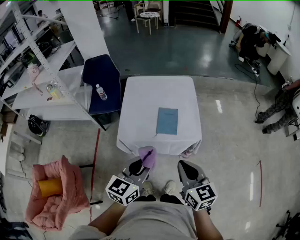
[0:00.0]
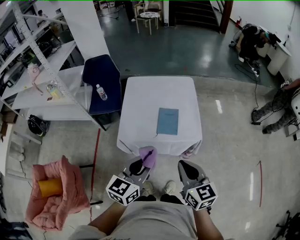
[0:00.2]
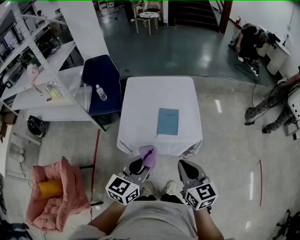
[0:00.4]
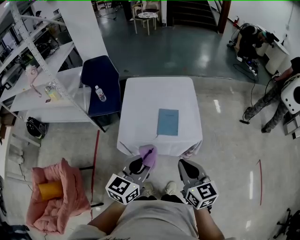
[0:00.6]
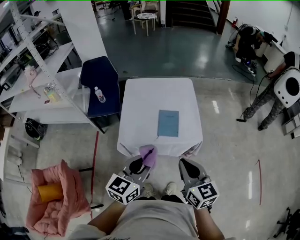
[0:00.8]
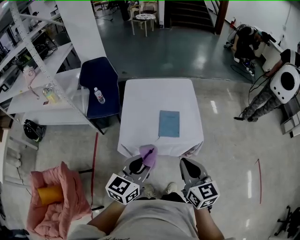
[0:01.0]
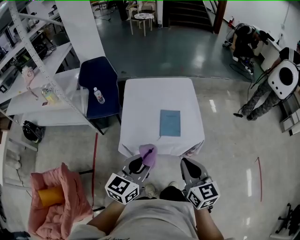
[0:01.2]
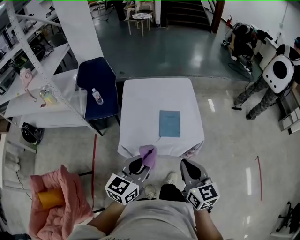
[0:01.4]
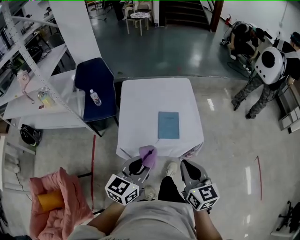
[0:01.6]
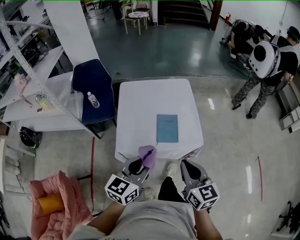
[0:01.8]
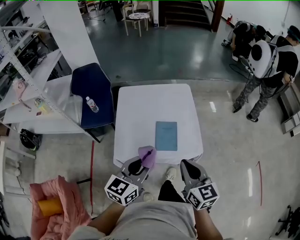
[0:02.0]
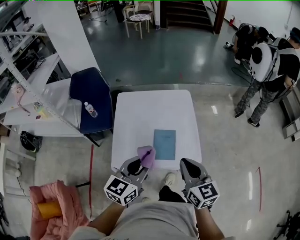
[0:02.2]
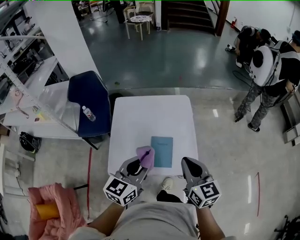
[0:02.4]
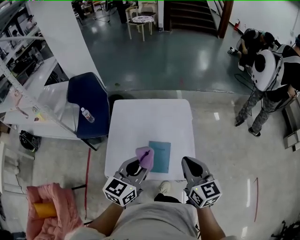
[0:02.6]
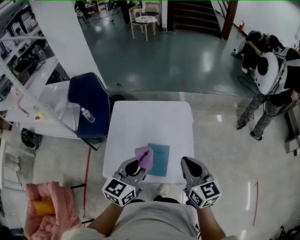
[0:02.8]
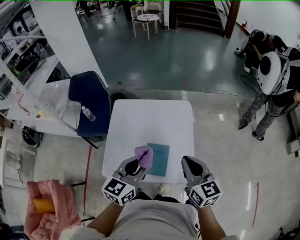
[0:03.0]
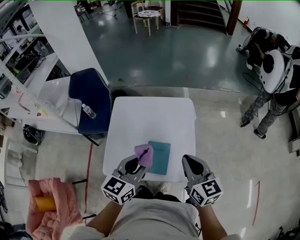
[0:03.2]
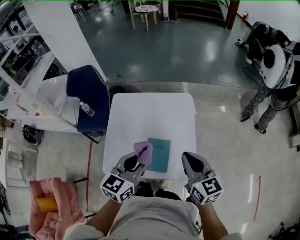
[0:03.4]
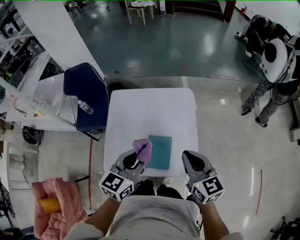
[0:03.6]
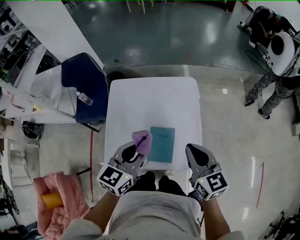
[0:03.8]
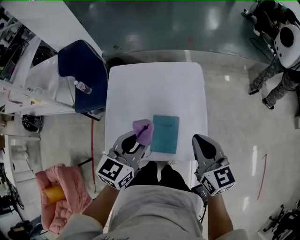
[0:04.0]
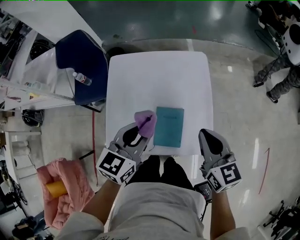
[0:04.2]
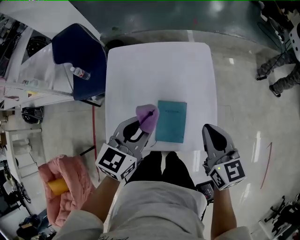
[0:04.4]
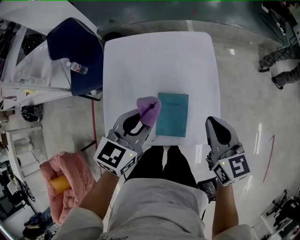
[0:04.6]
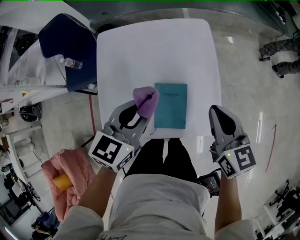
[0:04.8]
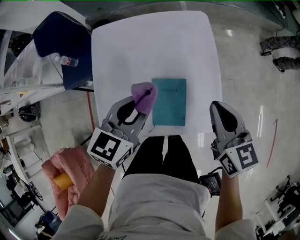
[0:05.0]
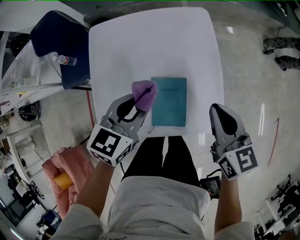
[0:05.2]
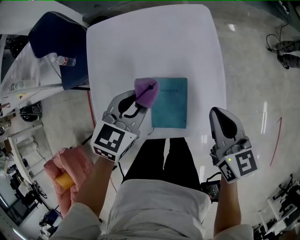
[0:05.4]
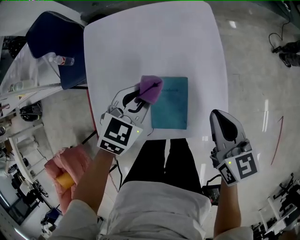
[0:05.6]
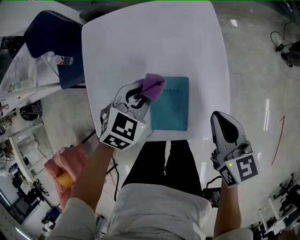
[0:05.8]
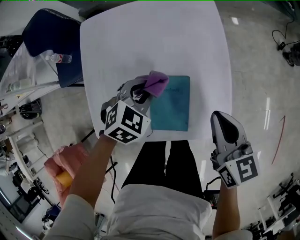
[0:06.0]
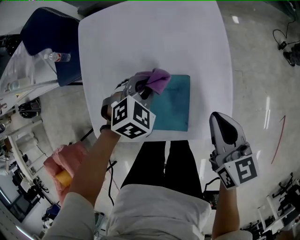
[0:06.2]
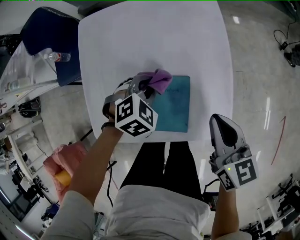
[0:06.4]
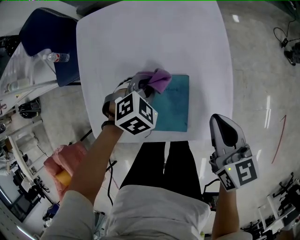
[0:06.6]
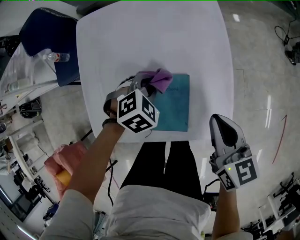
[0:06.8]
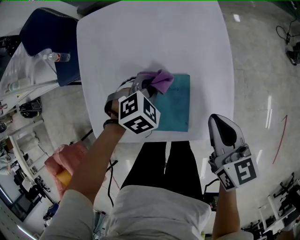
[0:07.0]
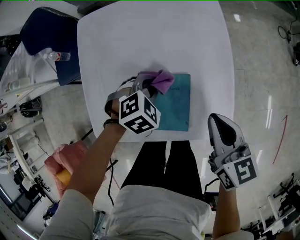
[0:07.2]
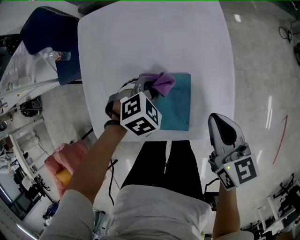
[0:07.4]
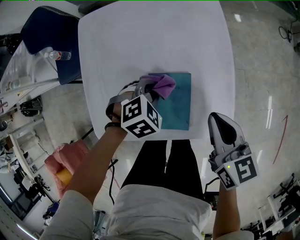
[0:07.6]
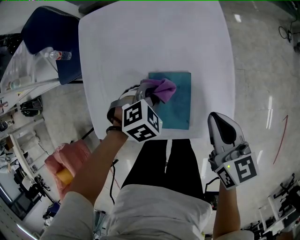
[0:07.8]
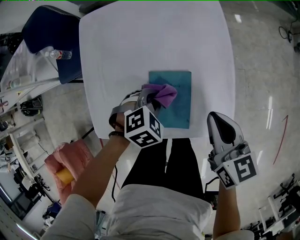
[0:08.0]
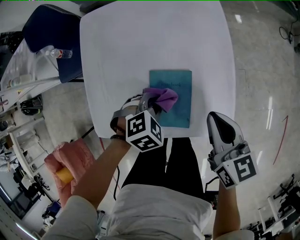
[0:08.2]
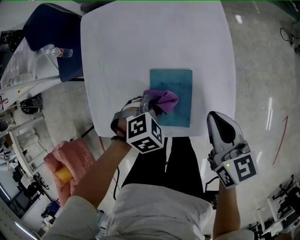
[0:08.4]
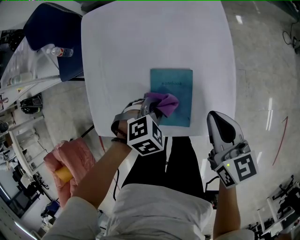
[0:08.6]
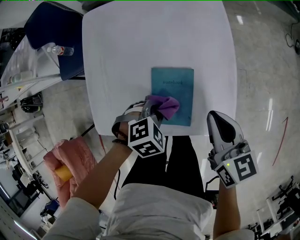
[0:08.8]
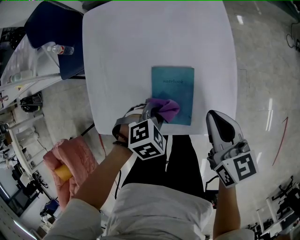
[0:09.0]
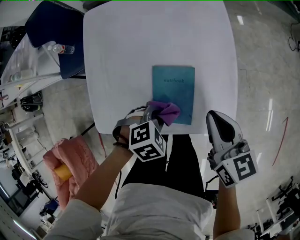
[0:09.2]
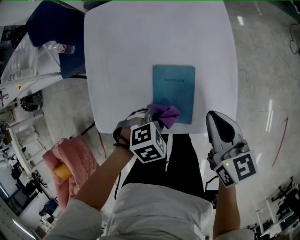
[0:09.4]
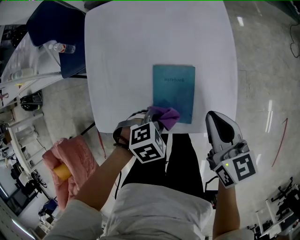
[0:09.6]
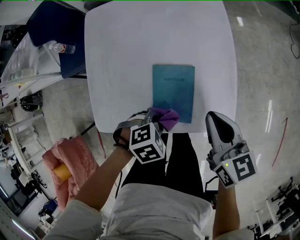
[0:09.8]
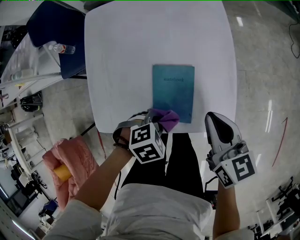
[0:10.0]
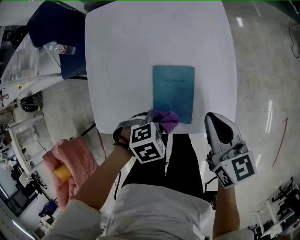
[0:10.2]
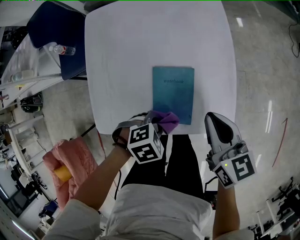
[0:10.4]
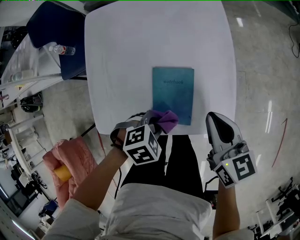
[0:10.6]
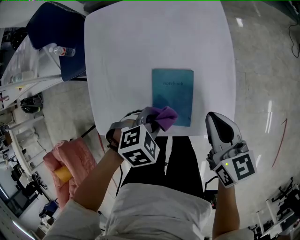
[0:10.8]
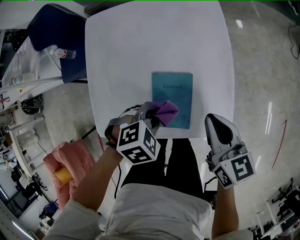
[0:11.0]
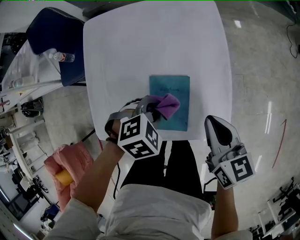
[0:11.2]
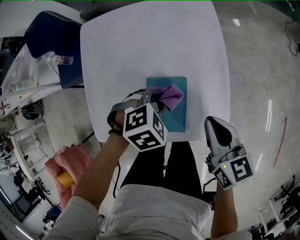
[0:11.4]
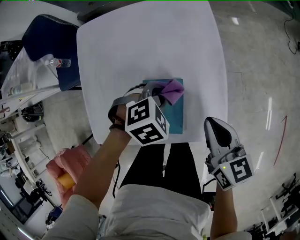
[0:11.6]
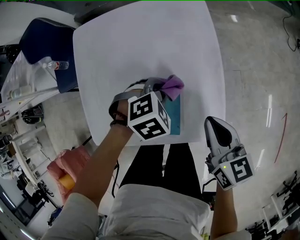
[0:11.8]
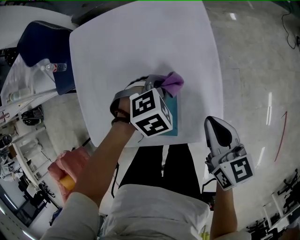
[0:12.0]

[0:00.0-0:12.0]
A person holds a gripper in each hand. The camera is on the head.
0:00.0 to 0:01.6: The left gripper moves some 5 cm.
0:01.6 to 0:03.0: The two grippers go some 25 cm forward.
0:03.0 to 0:04.4: The left gripper heads downward and forward, covering roughly 10 cm. Meanwhile the right gripper goes roughly 5 cm downward.
0:04.4 to 0:06.0: The left gripper moves downward, roughly 20 cm, and tilts its fingers approximately 30 degrees downward; the right gripper heads downward, covering approximately 10 cm.
0:06.0 to 0:07.6: The left gripper moves downward, about 5 cm.
0:07.6 to 0:09.0: The left gripper is displaced backward by about 10 cm.
0:09.0 to 0:10.4: The left gripper changes place by some 5 cm.
0:10.4 to 0:12.0: The left gripper changes place by approximately 20 cm; the right gripper changes place by about 5 cm.

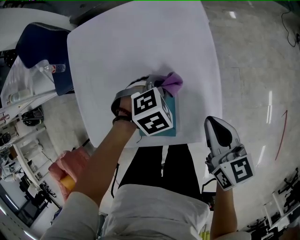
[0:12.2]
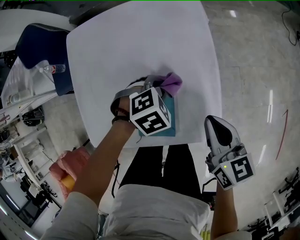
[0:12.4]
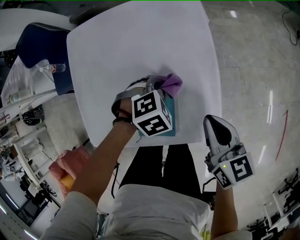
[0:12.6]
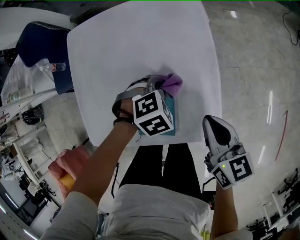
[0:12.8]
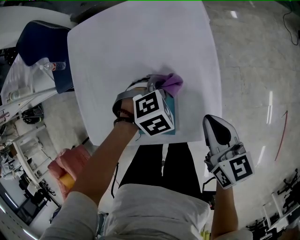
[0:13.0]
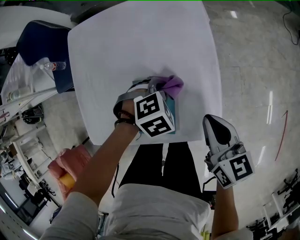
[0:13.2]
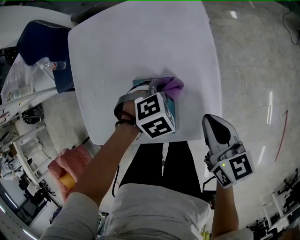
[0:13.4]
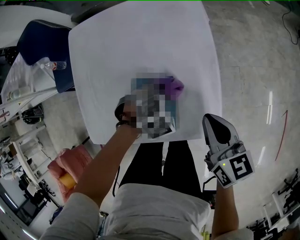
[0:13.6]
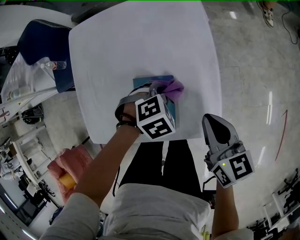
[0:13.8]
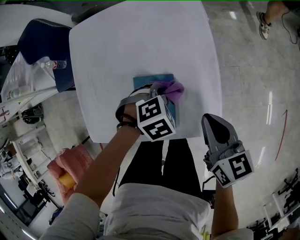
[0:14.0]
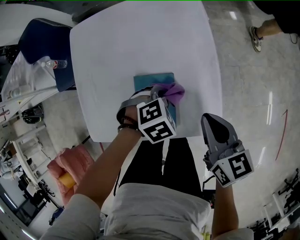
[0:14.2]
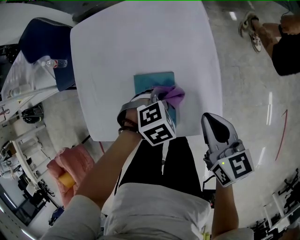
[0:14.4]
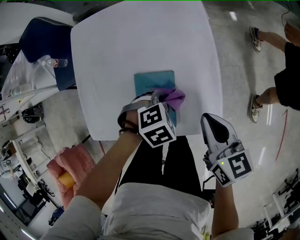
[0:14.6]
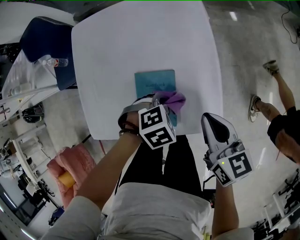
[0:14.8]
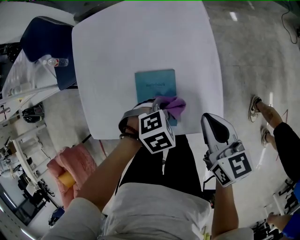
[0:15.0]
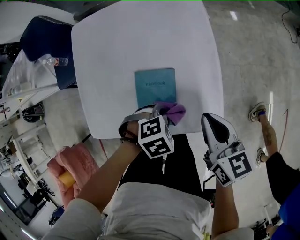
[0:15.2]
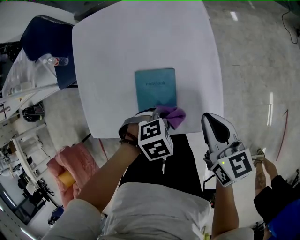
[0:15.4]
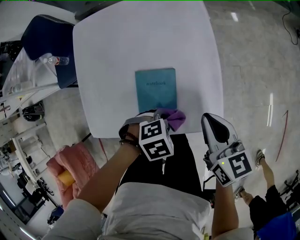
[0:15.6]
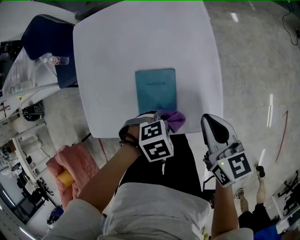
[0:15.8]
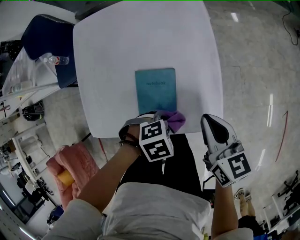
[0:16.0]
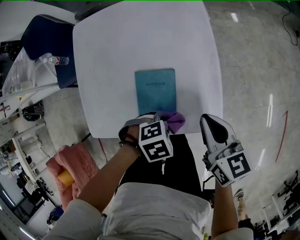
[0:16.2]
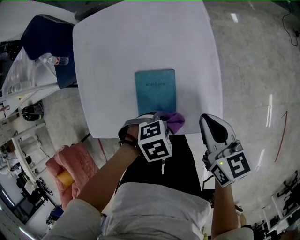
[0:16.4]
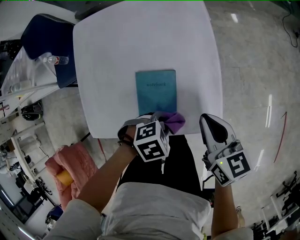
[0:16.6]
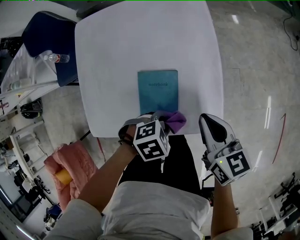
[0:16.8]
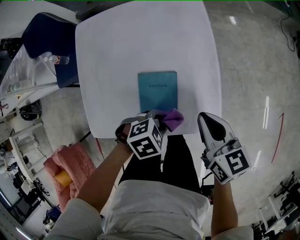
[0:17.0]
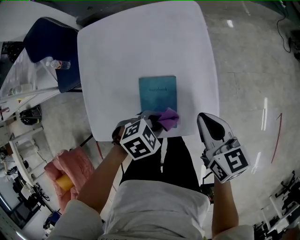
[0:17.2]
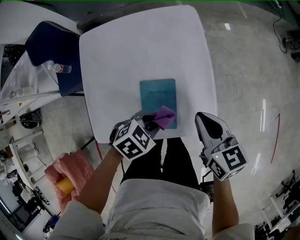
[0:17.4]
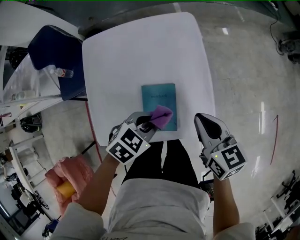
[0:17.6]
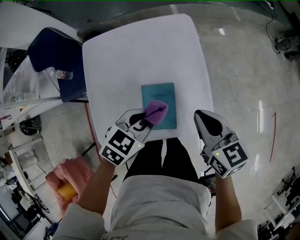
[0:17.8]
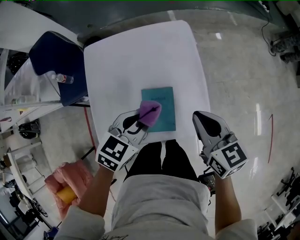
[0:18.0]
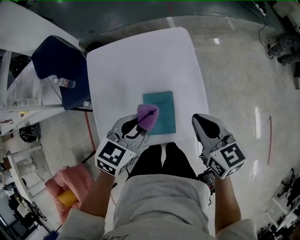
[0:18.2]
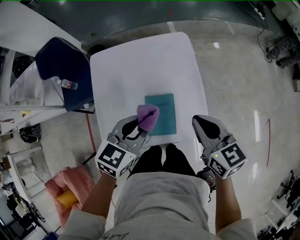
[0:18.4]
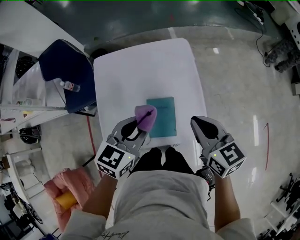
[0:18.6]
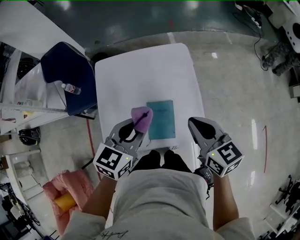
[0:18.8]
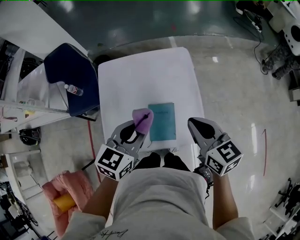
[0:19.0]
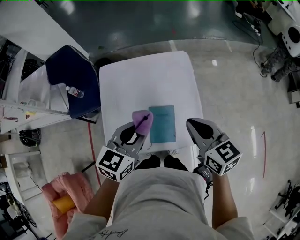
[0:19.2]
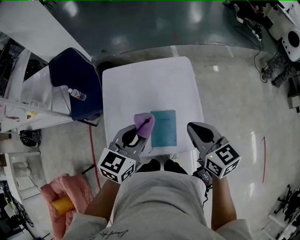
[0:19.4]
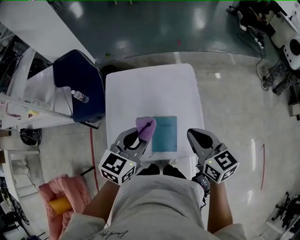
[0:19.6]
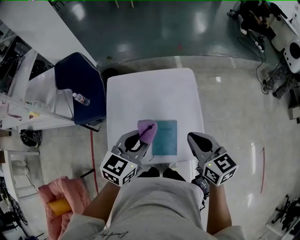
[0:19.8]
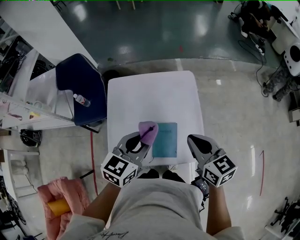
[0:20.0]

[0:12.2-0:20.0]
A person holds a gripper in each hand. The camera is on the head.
0:12.2 to 0:13.8: There are only small adjustments of the grippers.
0:13.8 to 0:15.4: The left gripper ends up roughly 10 cm from where it was.
0:15.4 to 0:16.8: The grippers move only a little.
0:16.8 to 0:18.4: The left gripper travels upward by about 25 cm, and points its fingers approximately 40 degrees further upward; the right gripper shifts roughly 15 cm upward.
0:18.4 to 0:20.0: The right gripper moves about 5 cm. The left gripper is displaced upward by approximately 5 cm.

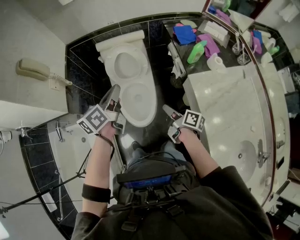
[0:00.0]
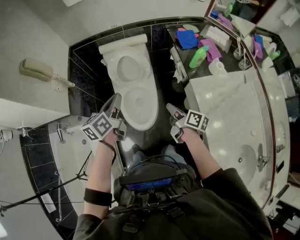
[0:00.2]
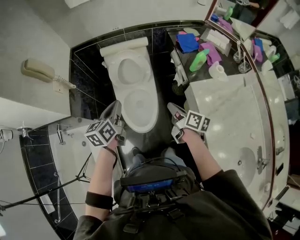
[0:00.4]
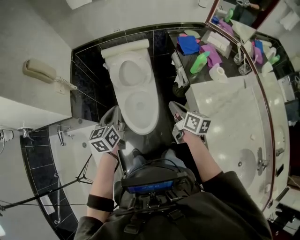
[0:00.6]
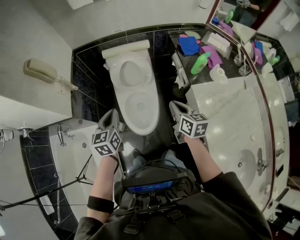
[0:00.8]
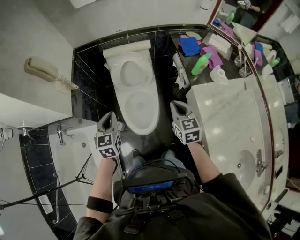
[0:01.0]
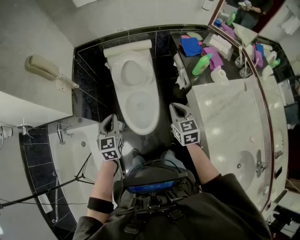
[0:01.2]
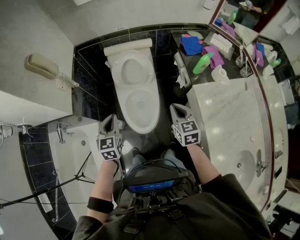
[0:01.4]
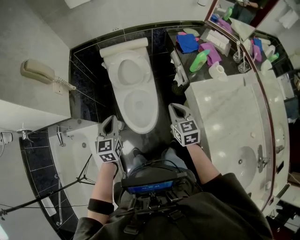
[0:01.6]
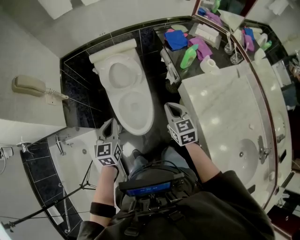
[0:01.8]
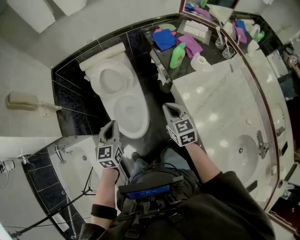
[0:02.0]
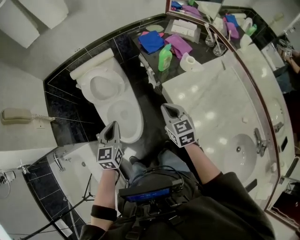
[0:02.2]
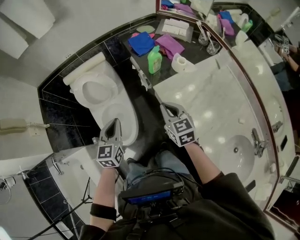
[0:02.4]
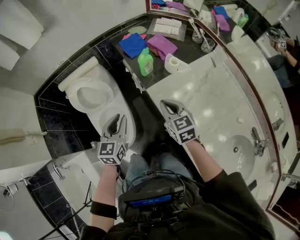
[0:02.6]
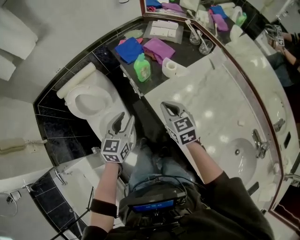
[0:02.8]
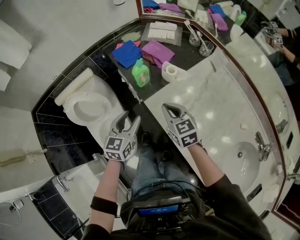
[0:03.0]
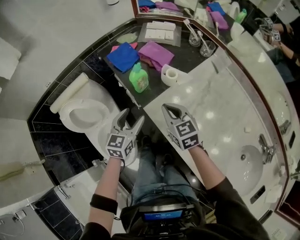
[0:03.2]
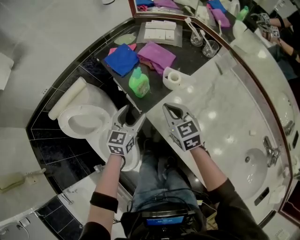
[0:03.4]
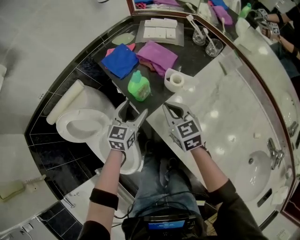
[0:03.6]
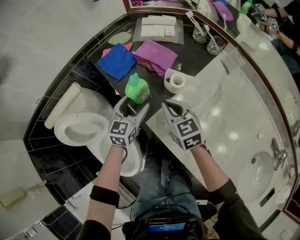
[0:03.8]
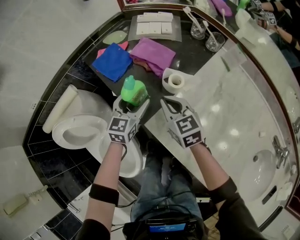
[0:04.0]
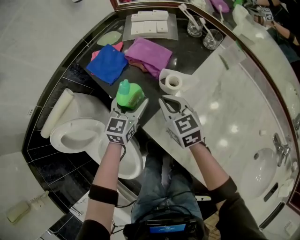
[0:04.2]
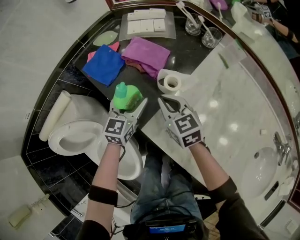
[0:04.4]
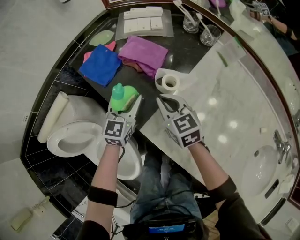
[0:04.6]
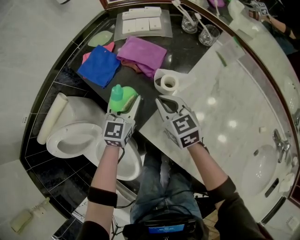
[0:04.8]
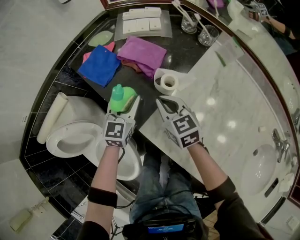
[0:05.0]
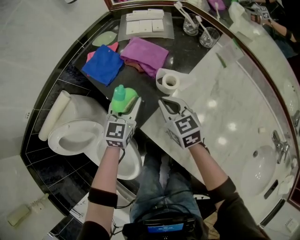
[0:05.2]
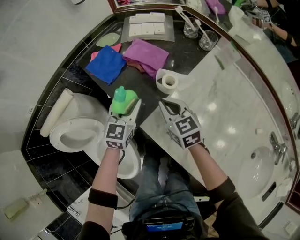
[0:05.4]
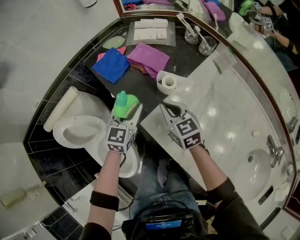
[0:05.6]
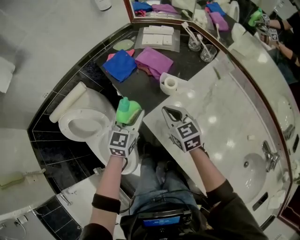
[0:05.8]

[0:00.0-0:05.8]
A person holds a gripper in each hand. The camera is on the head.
0:00.0 to 0:01.4: The right gripper goes roughly 5 cm upward, and twists approximately 60 degrees counterclockwise, seen from behind, while the left gripper travels downward, to the left and backward by about 15 cm, and rotates around the line of its fingers by about 40 degrees, clockwise from behind.
0:01.4 to 0:02.8: Both grippers move to the right, some 30 cm. The left gripper rotates approximately 40 degrees, and opens.
0:02.8 to 0:04.4: Both grippers travel together forward and downward, roughly 30 cm. The left gripper swivels about 20 degrees, and opens up.
0:04.4 to 0:05.8: The grippers both shift backward and upward by approximately 15 cm. The left gripper closes its fingers.
